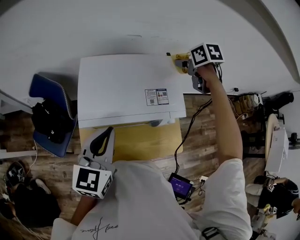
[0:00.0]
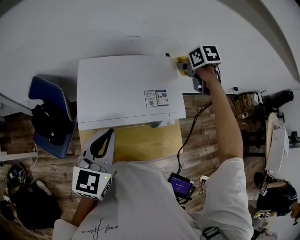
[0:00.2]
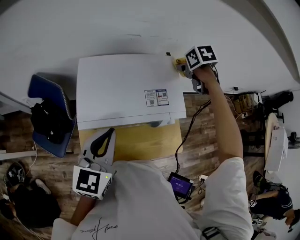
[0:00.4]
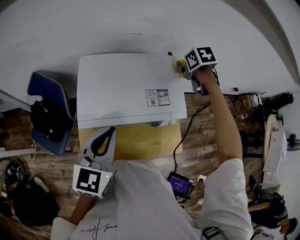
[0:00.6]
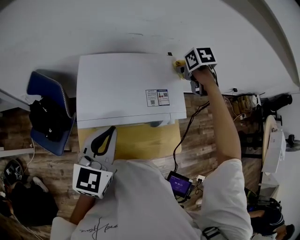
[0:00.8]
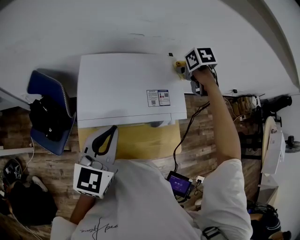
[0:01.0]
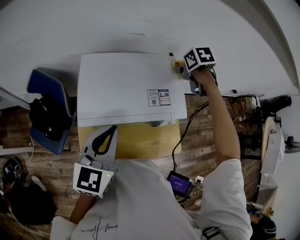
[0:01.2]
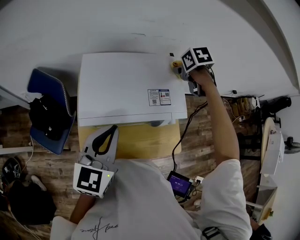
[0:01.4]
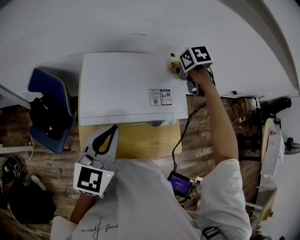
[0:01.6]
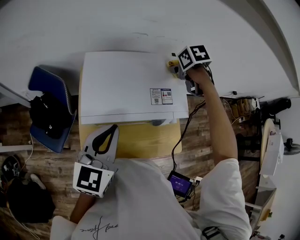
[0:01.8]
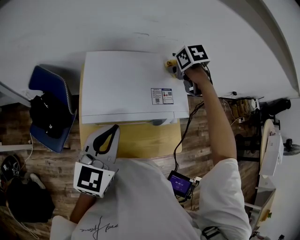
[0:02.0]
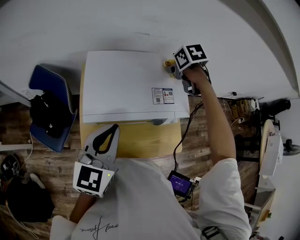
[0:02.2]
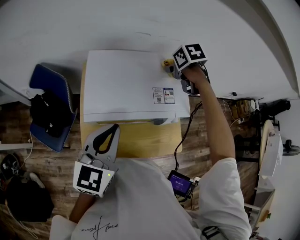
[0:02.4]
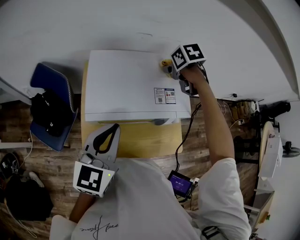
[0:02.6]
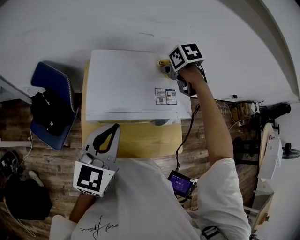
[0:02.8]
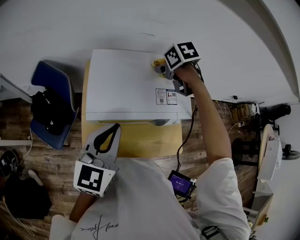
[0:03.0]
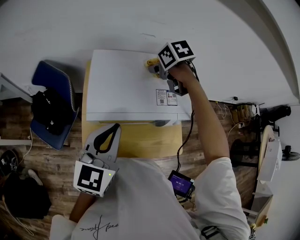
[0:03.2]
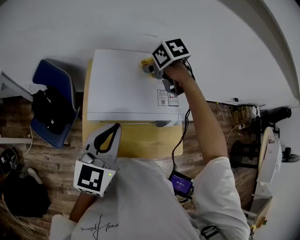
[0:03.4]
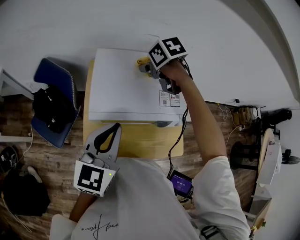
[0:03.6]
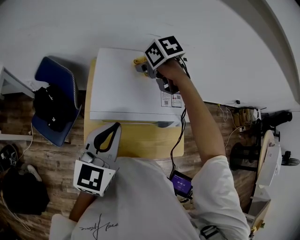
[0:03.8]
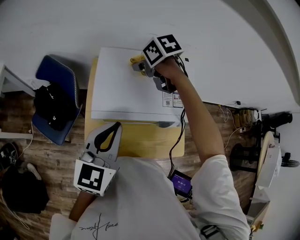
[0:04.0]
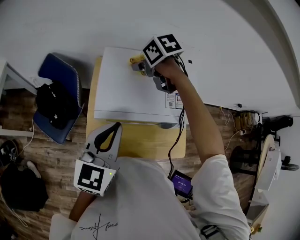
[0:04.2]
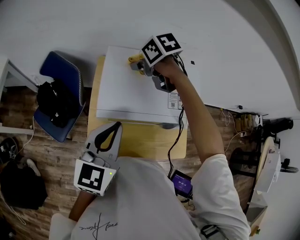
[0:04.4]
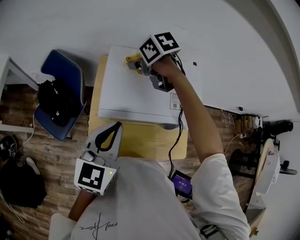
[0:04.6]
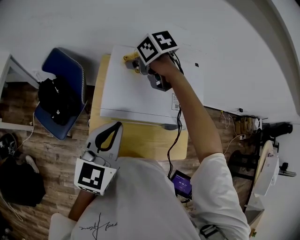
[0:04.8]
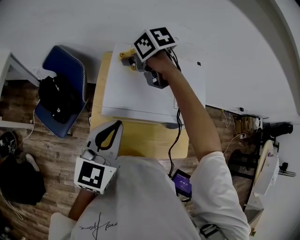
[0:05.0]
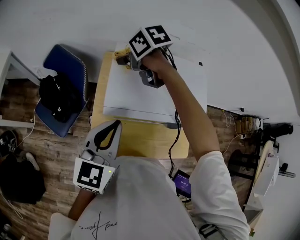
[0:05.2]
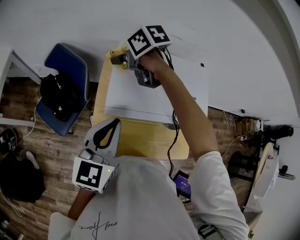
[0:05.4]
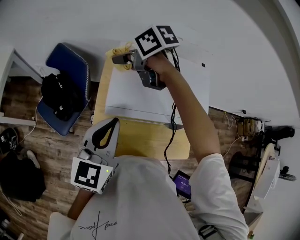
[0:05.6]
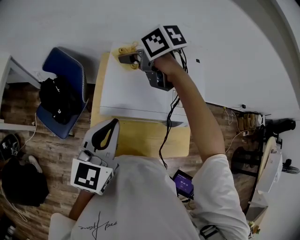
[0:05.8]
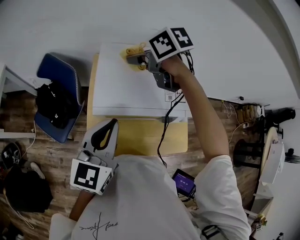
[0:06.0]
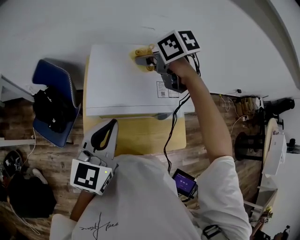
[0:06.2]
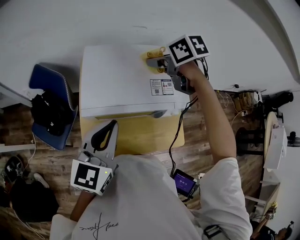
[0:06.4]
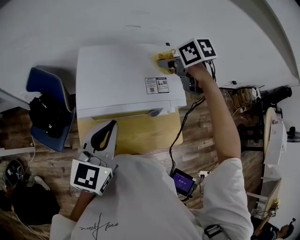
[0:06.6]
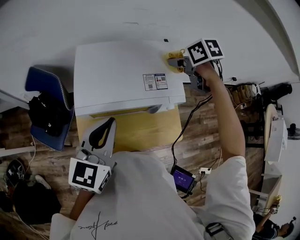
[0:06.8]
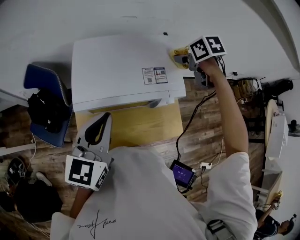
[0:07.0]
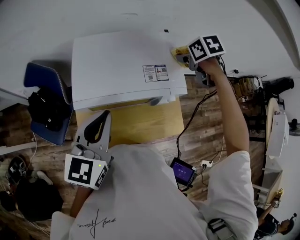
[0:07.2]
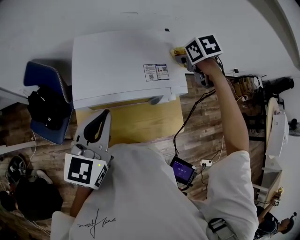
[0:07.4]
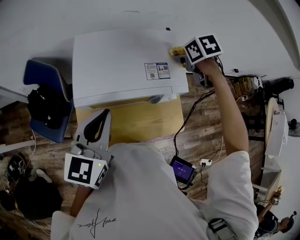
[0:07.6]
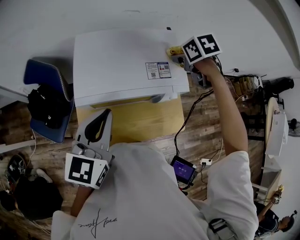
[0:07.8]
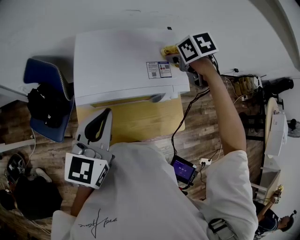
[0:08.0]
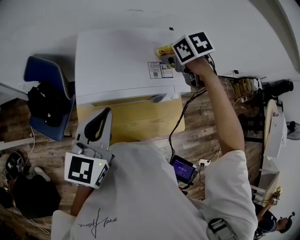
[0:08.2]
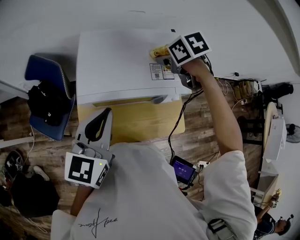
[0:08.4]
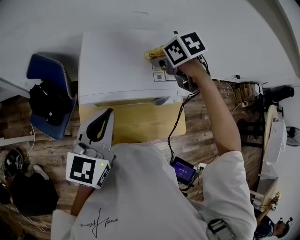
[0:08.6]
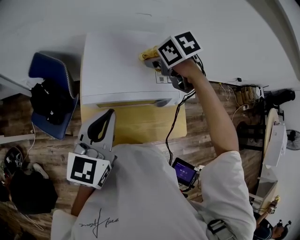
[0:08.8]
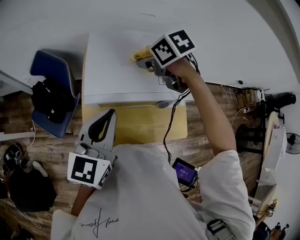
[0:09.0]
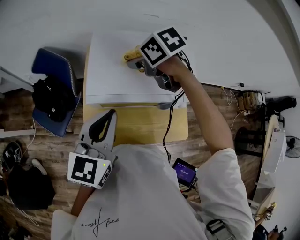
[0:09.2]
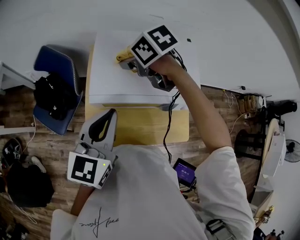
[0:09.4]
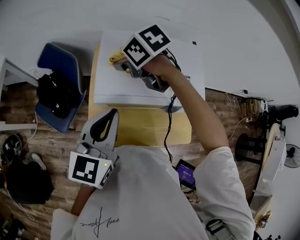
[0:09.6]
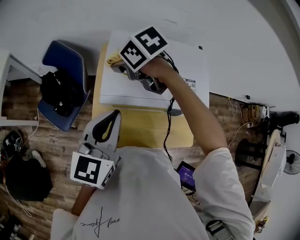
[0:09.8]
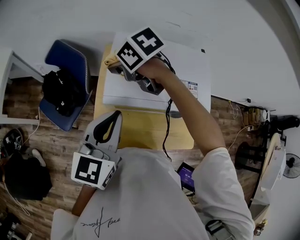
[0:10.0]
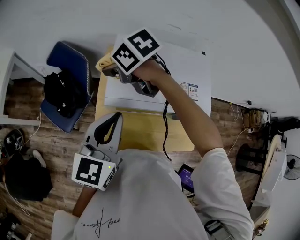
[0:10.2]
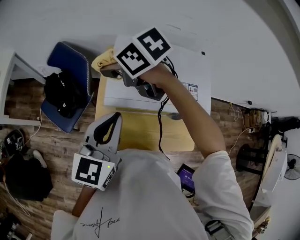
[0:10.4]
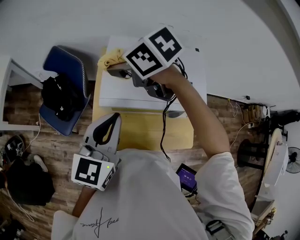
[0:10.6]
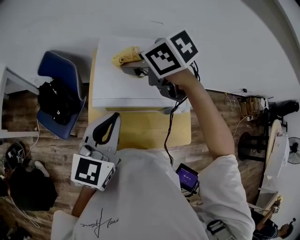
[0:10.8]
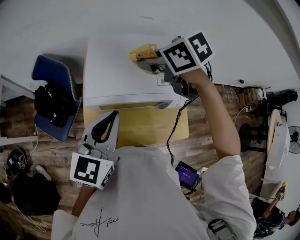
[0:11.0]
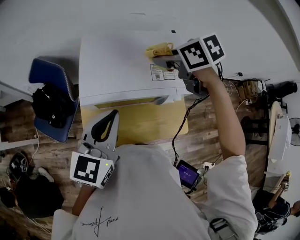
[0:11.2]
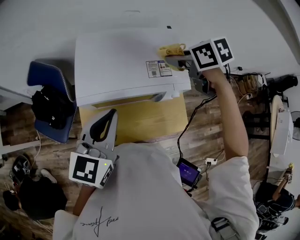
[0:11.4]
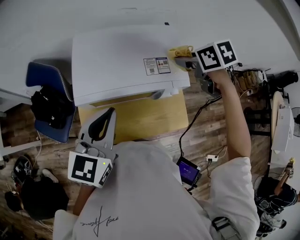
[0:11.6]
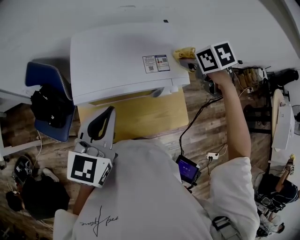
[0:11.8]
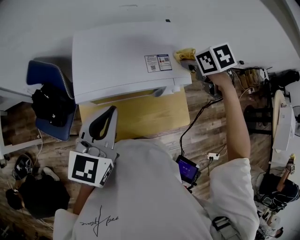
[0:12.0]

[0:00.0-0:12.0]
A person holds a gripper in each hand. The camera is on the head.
0:00.0 to 0:01.6: The grippers make only small movements.
0:01.6 to 0:03.0: The right gripper heads to the left, covering approximately 10 cm.
0:03.0 to 0:04.4: The right gripper heads to the left, covering about 15 cm.
0:04.4 to 0:06.0: The right gripper goes to the left and returns, approximately 10 cm each way.
0:06.0 to 0:07.6: The right gripper ends up some 30 cm from where it was, and rotates approximately 30 degrees.
0:07.6 to 0:09.0: The right gripper goes roughly 20 cm to the left, and changes its angle by roughly 20 degrees.
0:09.0 to 0:10.4: The right gripper heads to the left, covering approximately 20 cm, and changes its angle by some 30 degrees.
0:10.4 to 0:12.0: The right gripper moves roughly 40 cm, and changes its angle by about 40 degrees. The left gripper ends up approximately 10 cm from where it was.

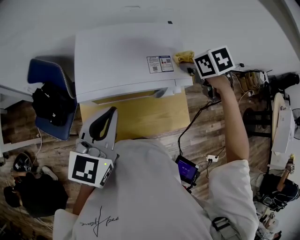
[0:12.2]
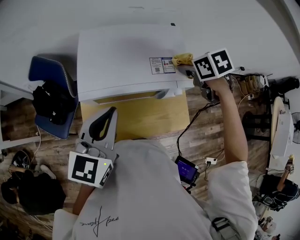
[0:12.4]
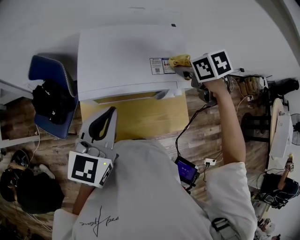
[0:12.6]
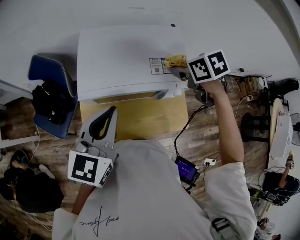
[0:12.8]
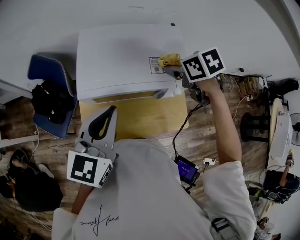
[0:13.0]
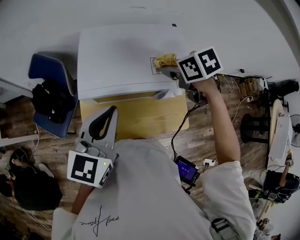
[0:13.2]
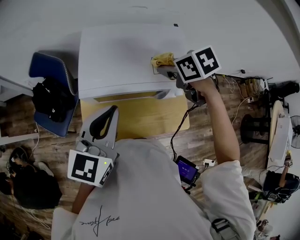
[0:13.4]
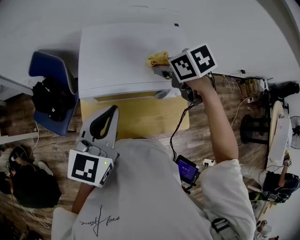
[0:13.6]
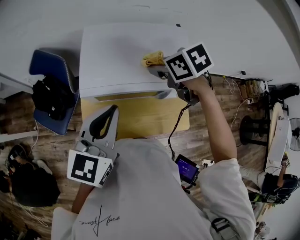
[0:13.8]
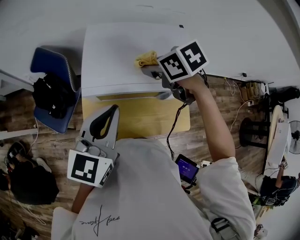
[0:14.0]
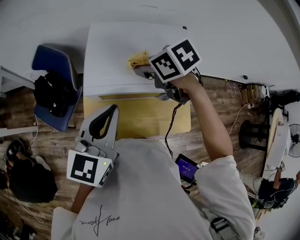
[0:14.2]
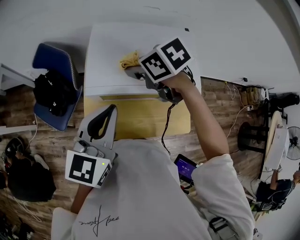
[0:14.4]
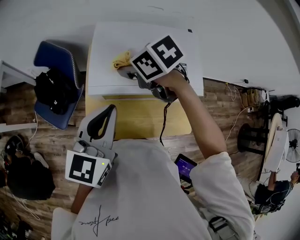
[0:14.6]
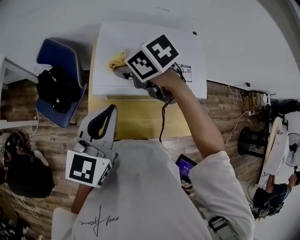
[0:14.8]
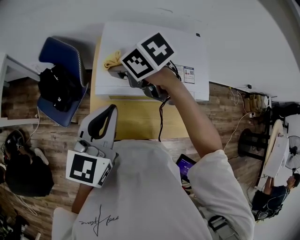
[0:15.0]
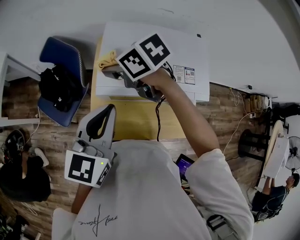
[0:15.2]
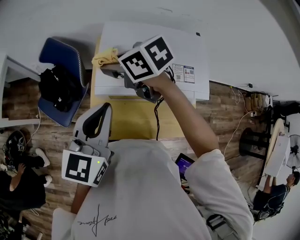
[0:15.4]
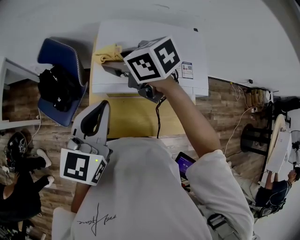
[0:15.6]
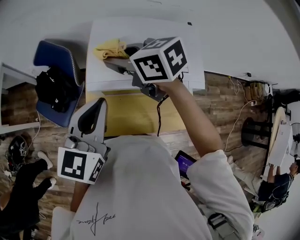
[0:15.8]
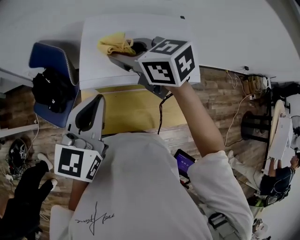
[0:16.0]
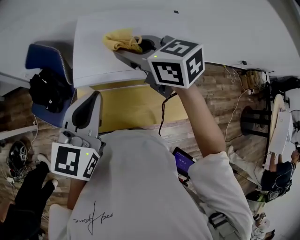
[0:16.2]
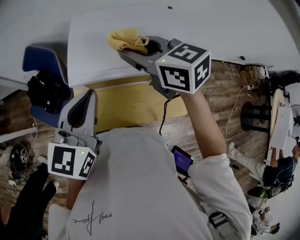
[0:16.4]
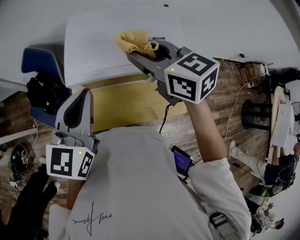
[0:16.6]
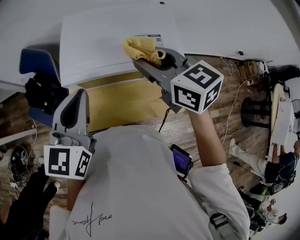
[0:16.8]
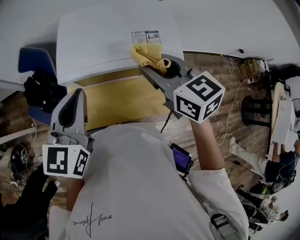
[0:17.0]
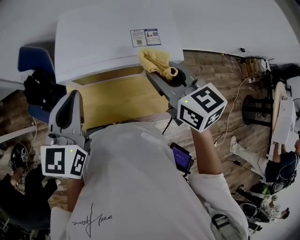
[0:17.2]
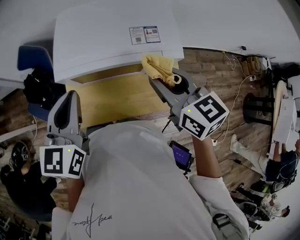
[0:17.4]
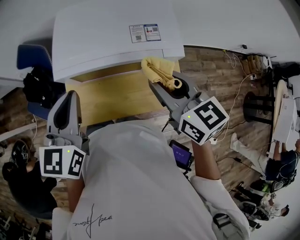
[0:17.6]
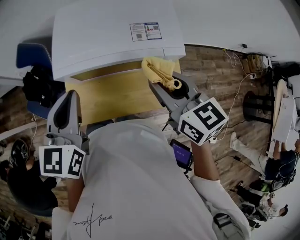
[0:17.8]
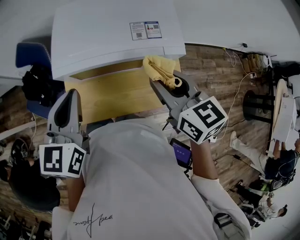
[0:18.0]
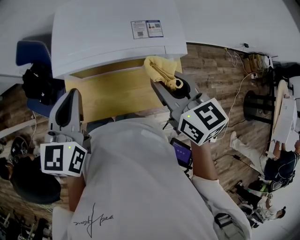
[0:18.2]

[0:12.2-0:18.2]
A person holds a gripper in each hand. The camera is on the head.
0:12.2 to 0:13.8: The right gripper goes approximately 15 cm to the left.
0:13.8 to 0:15.2: The right gripper is displaced to the left by approximately 20 cm, and swivels some 20 degrees, while the left gripper goes some 5 cm to the left.
0:15.2 to 0:16.6: The right gripper heads to the right, backward and upward, covering about 20 cm, and turns by roughly 40 degrees.
0:16.6 to 0:18.2: The right gripper goes approximately 15 cm backward, to the right and downward.

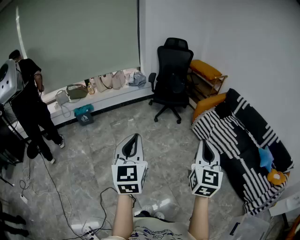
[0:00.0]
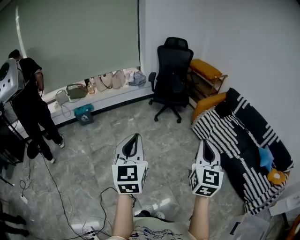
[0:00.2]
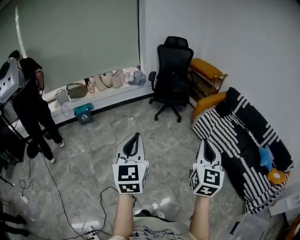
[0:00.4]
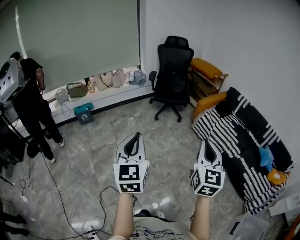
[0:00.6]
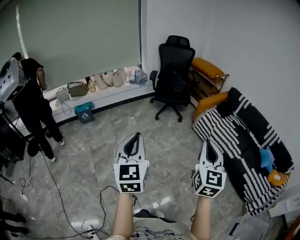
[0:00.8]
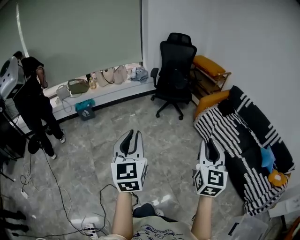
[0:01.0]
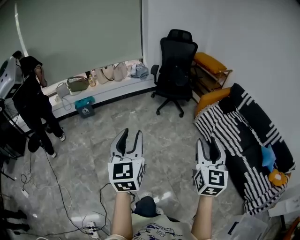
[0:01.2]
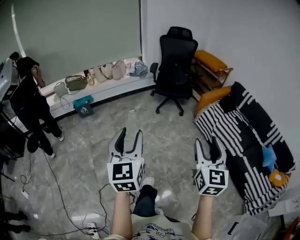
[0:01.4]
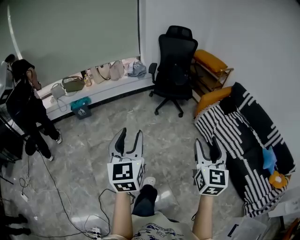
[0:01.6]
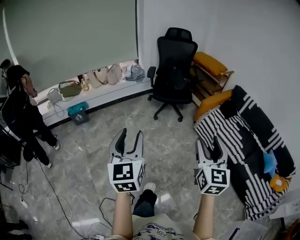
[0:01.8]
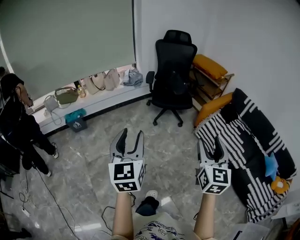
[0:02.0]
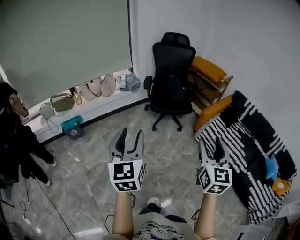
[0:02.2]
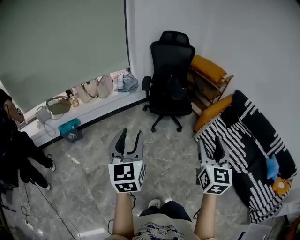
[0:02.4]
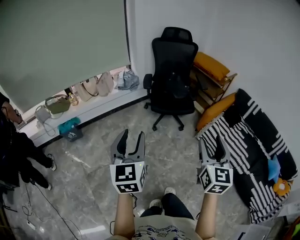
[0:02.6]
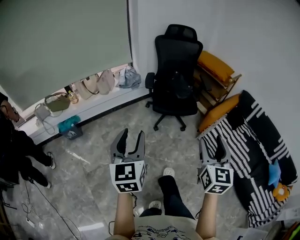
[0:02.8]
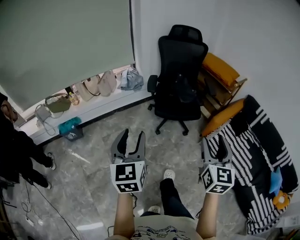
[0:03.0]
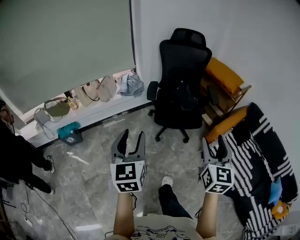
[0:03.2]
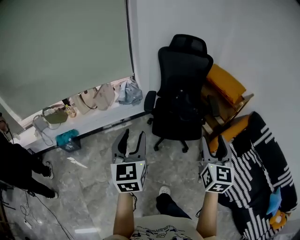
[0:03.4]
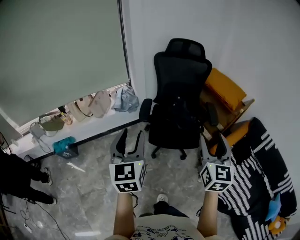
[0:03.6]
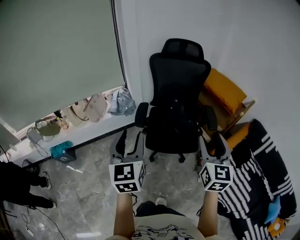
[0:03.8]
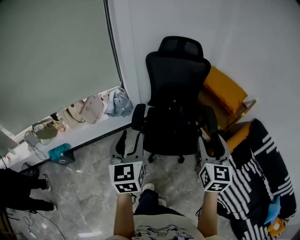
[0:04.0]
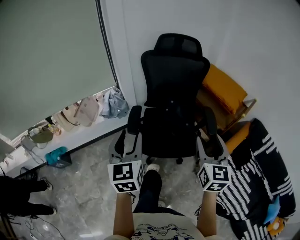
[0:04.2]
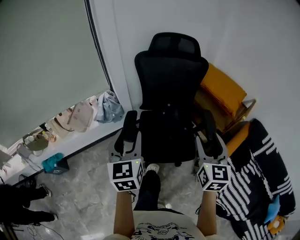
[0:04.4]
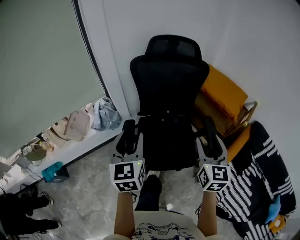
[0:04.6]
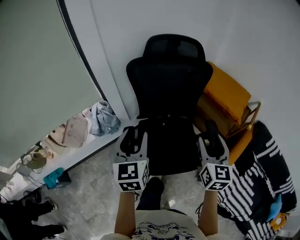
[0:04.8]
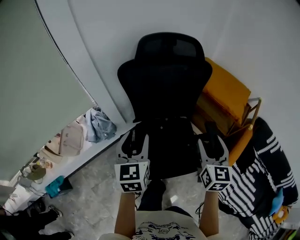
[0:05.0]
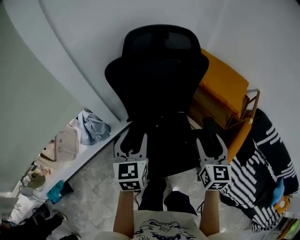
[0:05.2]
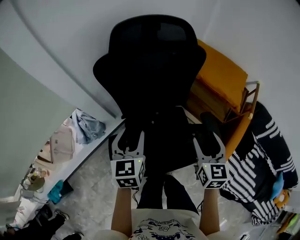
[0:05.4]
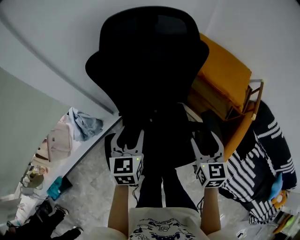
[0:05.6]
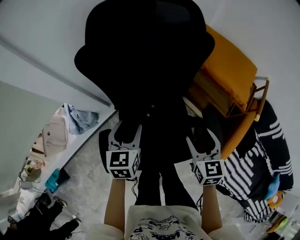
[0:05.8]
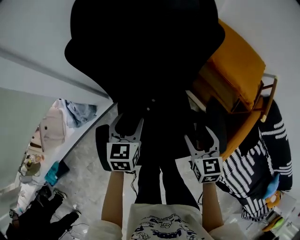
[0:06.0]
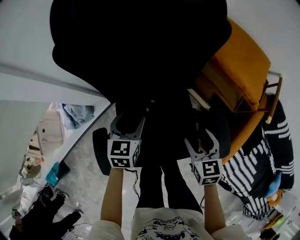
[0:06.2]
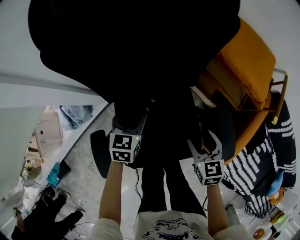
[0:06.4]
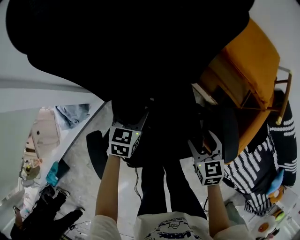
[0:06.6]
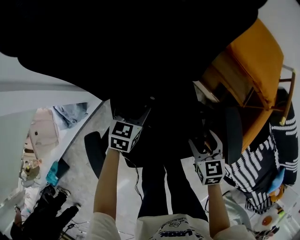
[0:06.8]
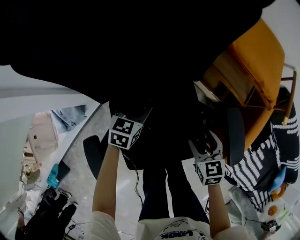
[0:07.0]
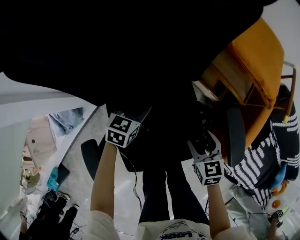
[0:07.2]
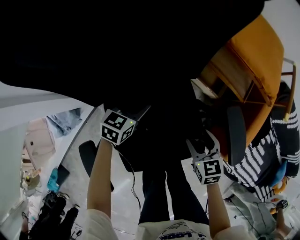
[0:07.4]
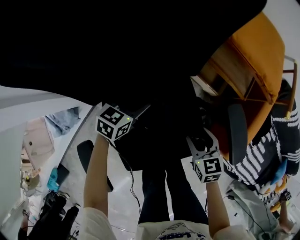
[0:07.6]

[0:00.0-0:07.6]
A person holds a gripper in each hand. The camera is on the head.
0:00.0 to 0:01.6: Both grippers move forward, about 10 cm. The left gripper opens up, while the right gripper opens up.
0:01.6 to 0:03.0: The pair of grippers is taken forward, about 50 cm.
0:03.0 to 0:04.6: The pair of grippers is taken forward, roughly 70 cm.
0:04.6 to 0:06.0: Both grippers move forward and downward, approximately 40 cm. The left gripper turns by about 30 degrees; the right gripper swivels approximately 20 degrees.
0:06.0 to 0:07.6: The left gripper travels downward and forward by approximately 25 cm, and turns by roughly 40 degrees; the right gripper moves downward, roughly 20 cm.
